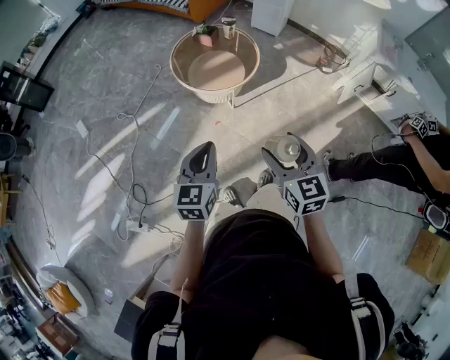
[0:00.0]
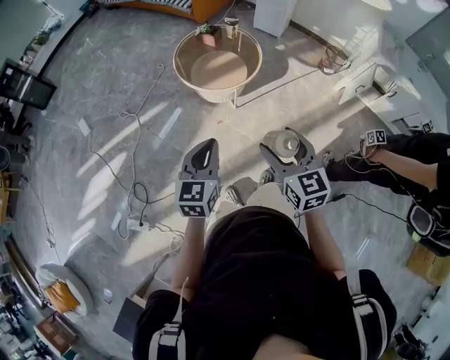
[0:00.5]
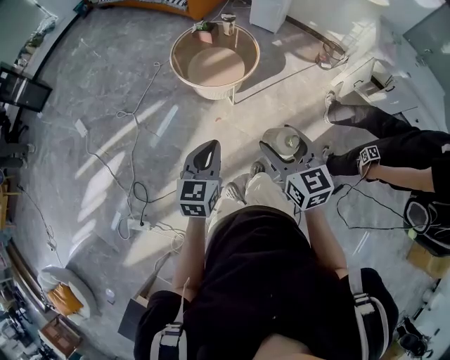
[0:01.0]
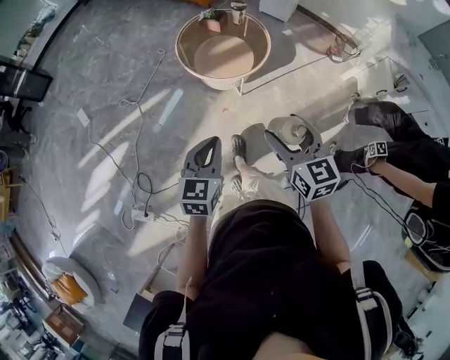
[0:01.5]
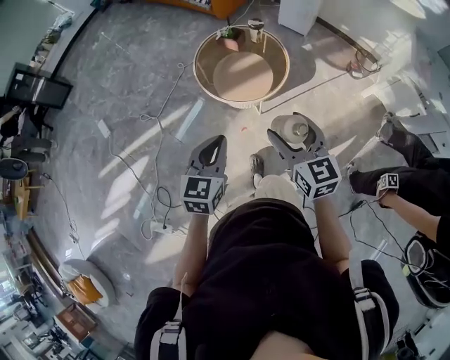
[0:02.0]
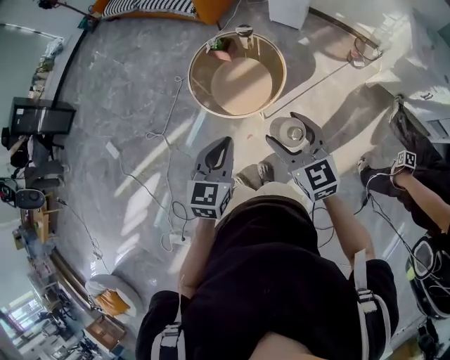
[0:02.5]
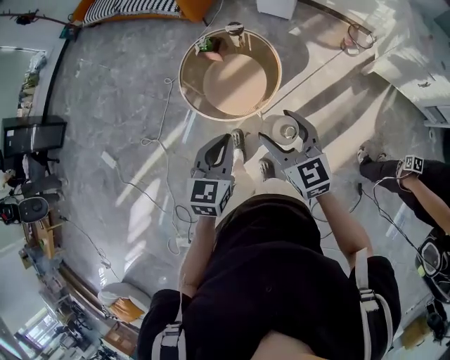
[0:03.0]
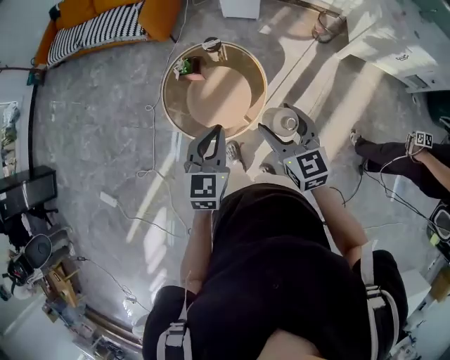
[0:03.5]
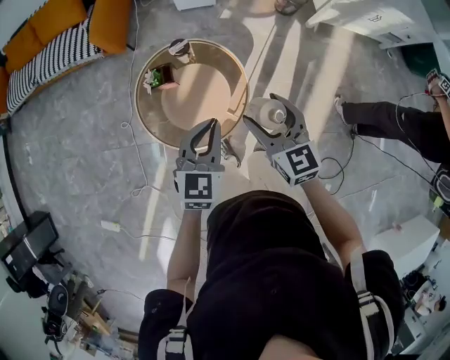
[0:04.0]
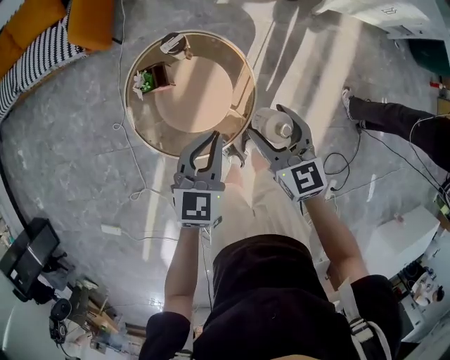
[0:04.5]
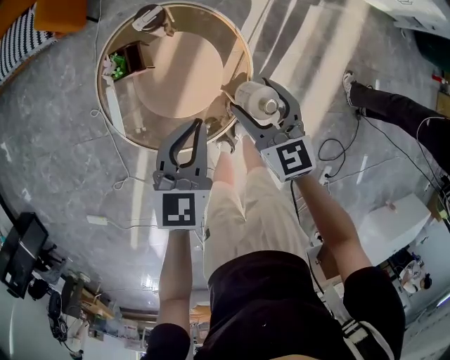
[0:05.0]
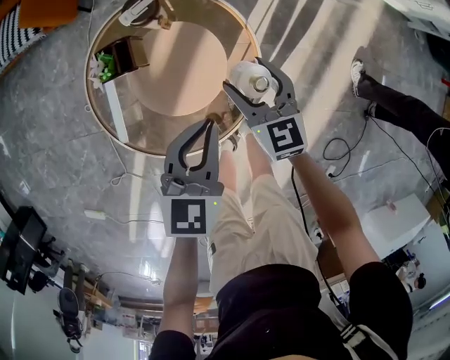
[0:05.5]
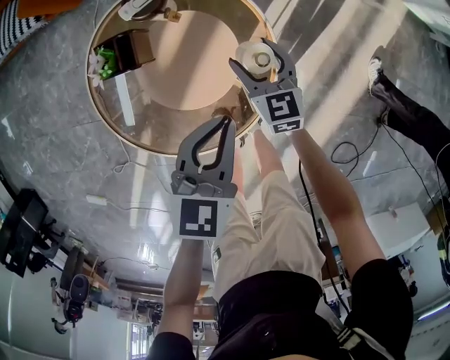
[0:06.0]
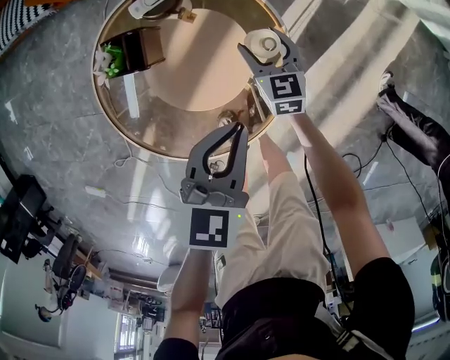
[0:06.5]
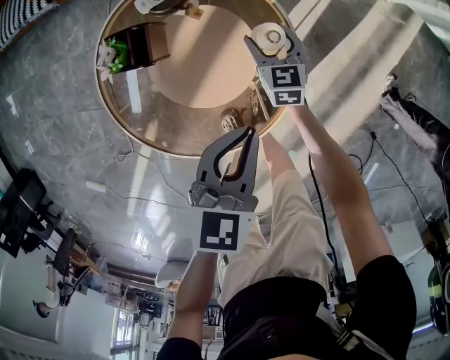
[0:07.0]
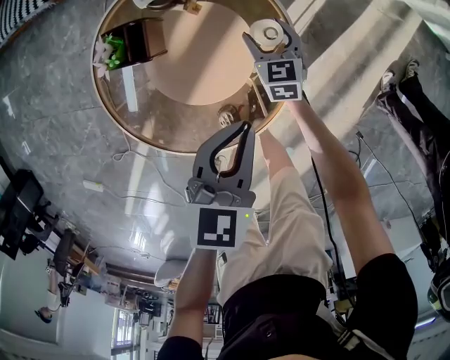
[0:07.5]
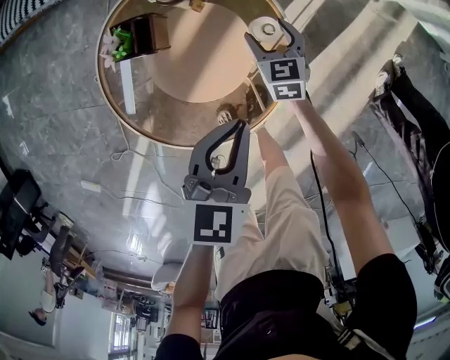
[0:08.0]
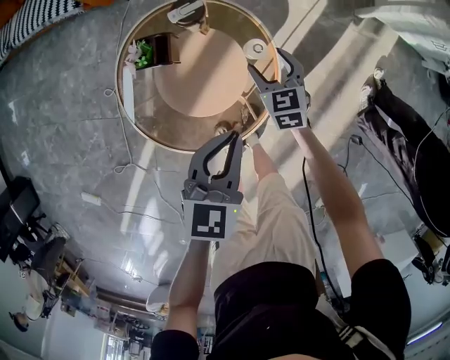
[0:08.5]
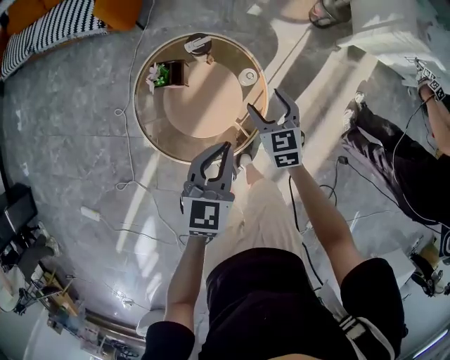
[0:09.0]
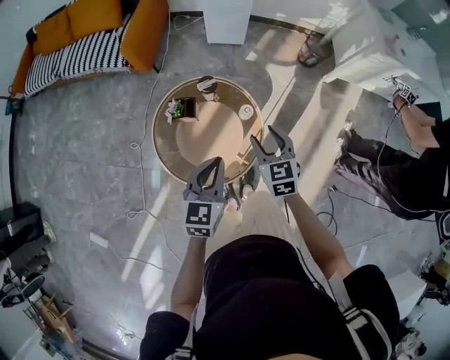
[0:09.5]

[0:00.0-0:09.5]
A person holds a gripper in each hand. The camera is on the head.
0:00.0 to 0:02.0: Both grippers move forward, roughly 15 cm.
0:02.0 to 0:04.0: The right gripper shifts by approximately 35 cm, and changes its angle by approximately 30 degrees. The left gripper shifts by roughly 40 cm, and swivels approximately 40 degrees.
0:04.0 to 0:05.5: The left gripper goes some 25 cm downward; the right gripper is displaced downward and forward by about 35 cm.
0:05.5 to 0:07.5: The right gripper heads downward and forward, covering about 25 cm. The left gripper heads downward, covering some 5 cm.
0:07.5 to 0:09.5: The left gripper travels upward by approximately 25 cm, while the right gripper travels upward by some 40 cm.

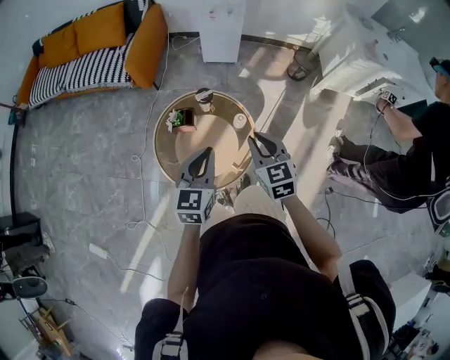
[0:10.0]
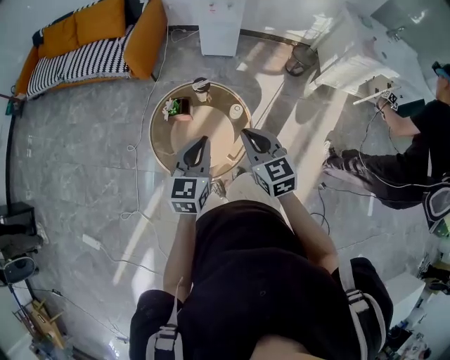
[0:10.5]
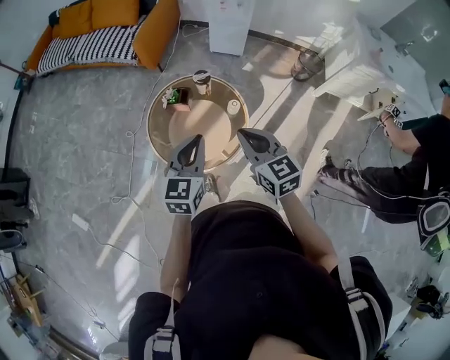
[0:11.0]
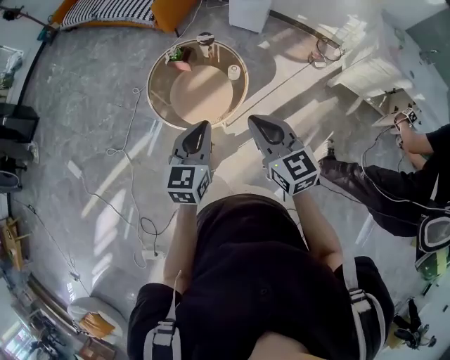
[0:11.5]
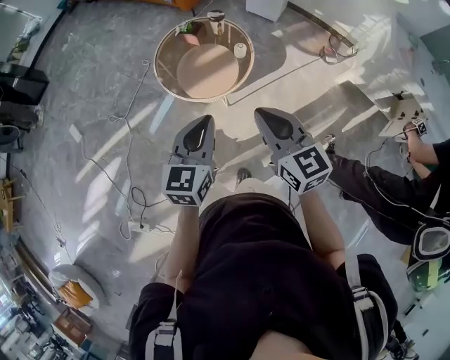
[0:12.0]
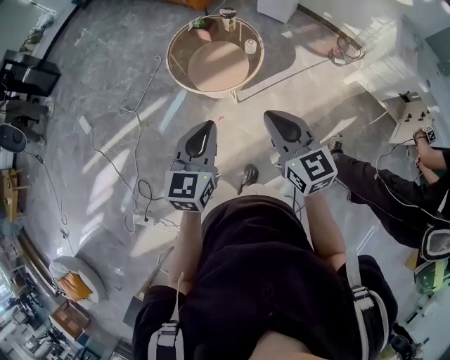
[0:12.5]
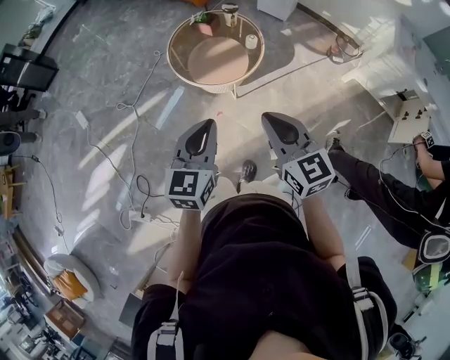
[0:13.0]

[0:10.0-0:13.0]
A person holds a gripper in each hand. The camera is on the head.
0:10.0 to 0:11.5: Both grippers travel together backward and to the right, approximately 25 cm. The right gripper rotates approximately 30 degrees.
0:11.5 to 0:13.0: The two grippers go some 20 cm backward.

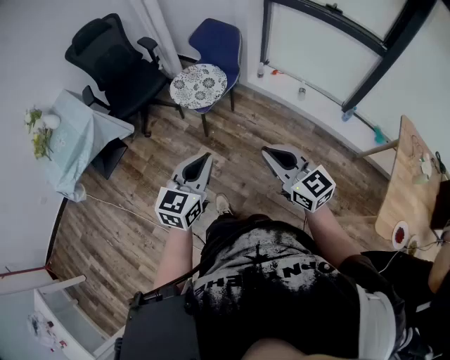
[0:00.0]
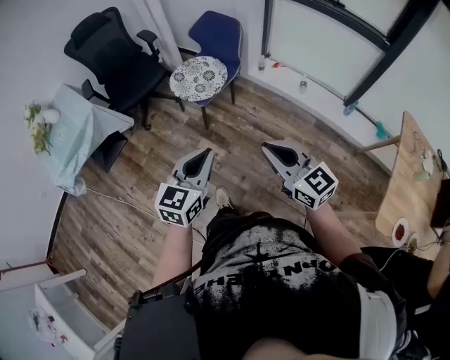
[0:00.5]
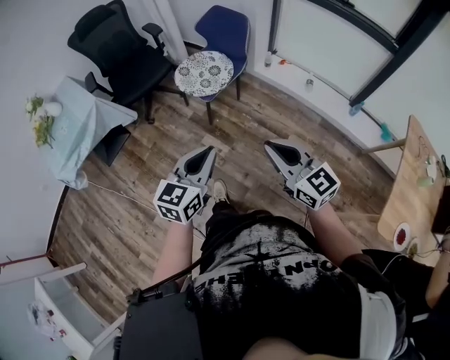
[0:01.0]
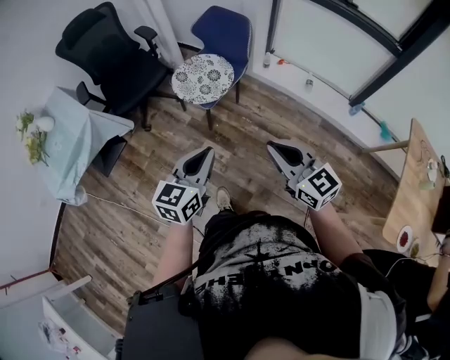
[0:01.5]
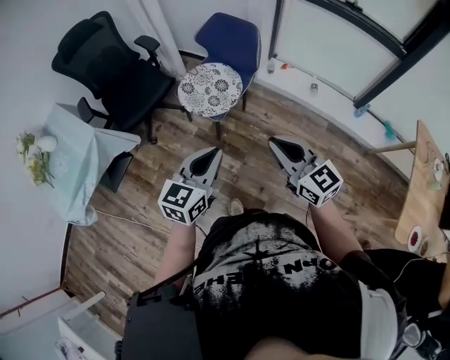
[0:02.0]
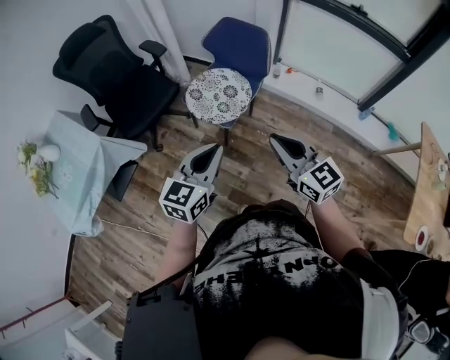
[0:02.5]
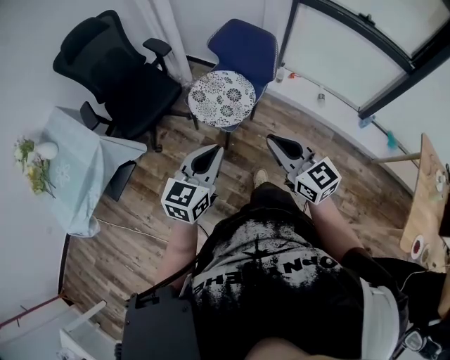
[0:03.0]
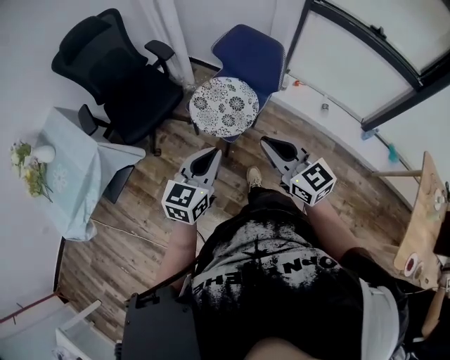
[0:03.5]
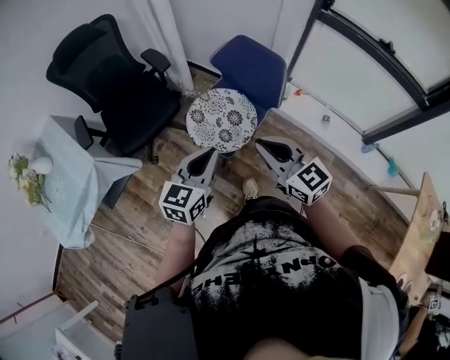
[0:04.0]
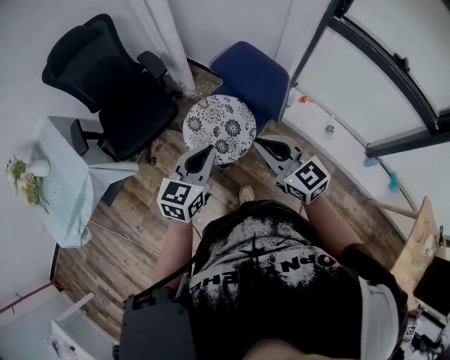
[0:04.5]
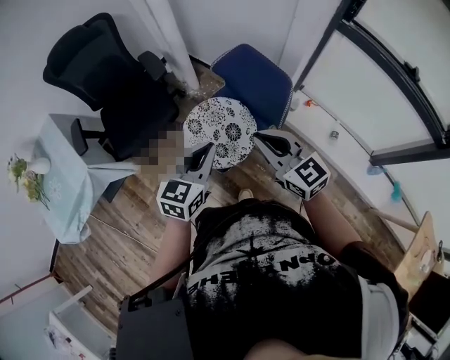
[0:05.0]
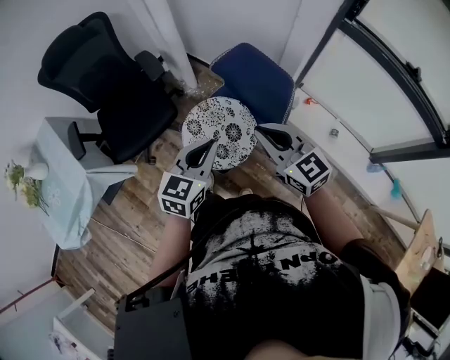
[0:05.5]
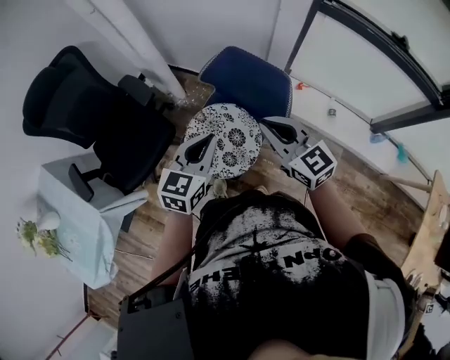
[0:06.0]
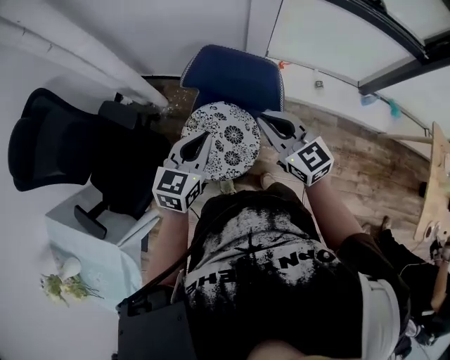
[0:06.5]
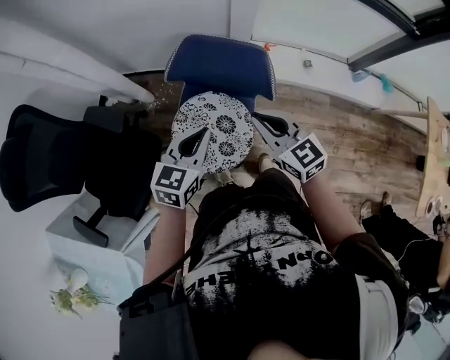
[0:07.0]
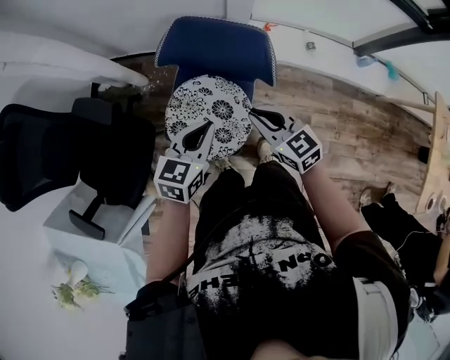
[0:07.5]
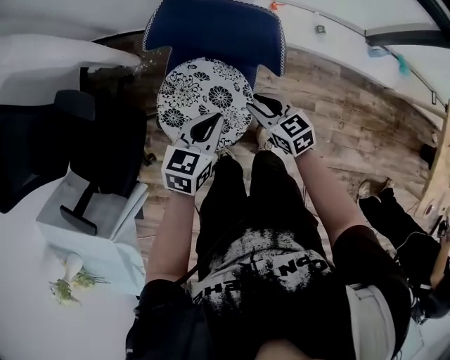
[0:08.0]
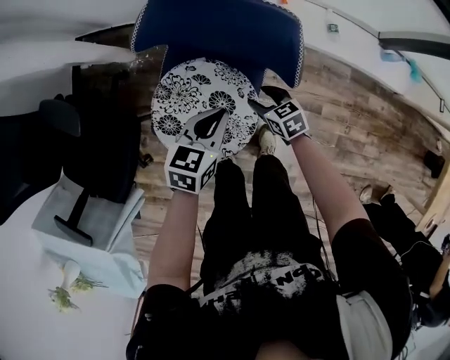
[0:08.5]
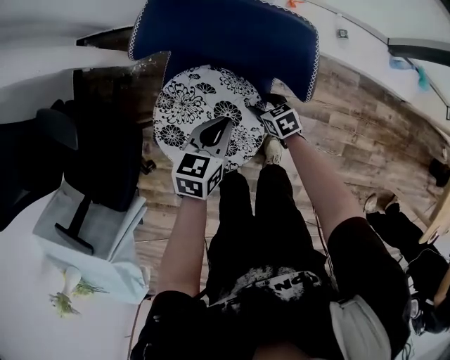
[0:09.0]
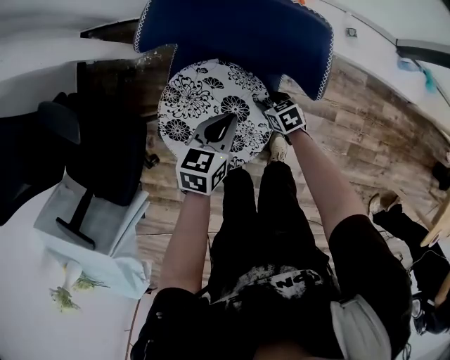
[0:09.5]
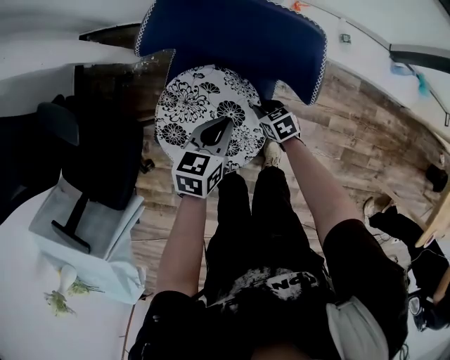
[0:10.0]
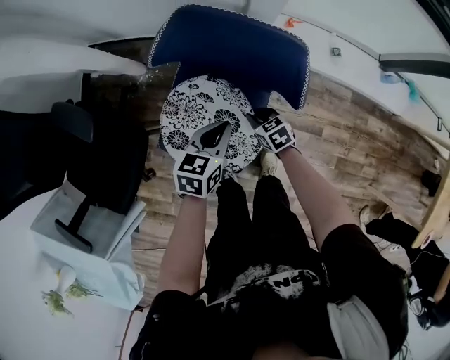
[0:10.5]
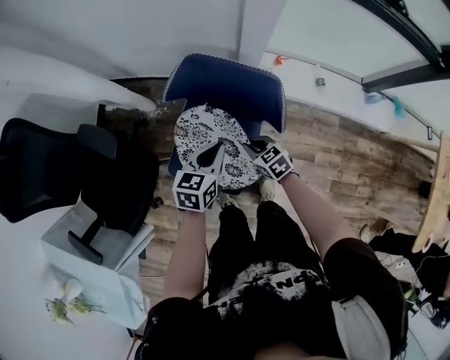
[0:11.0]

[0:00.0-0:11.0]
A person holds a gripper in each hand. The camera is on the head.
0:00.0 to 0:02.0: The grippers both shift forward and to the left by some 20 cm.
0:02.0 to 0:03.5: The two grippers go approximately 15 cm forward and to the left.
0:03.5 to 0:05.5: Both grippers travel together forward, some 25 cm.
0:05.5 to 0:07.5: The right gripper travels downward by about 15 cm, and turns by about 30 degrees. The left gripper changes place by about 15 cm, and turns by about 30 degrees.
0:07.5 to 0:09.0: The right gripper shifts some 40 cm downward, tilts its fingers roughly 30 degrees downward, and opens up; the left gripper travels downward by some 20 cm.
0:09.0 to 0:11.0: The two grippers go approximately 15 cm upward. The right gripper closes its fingers.

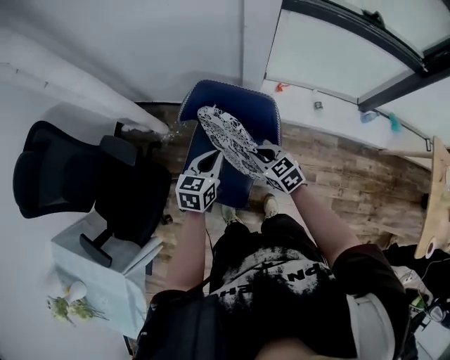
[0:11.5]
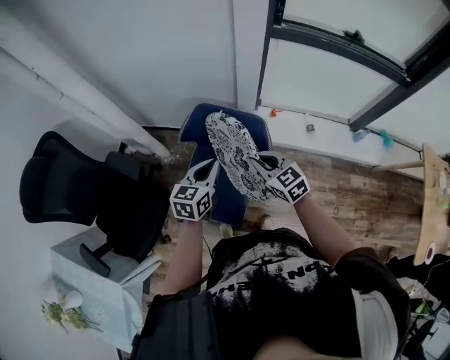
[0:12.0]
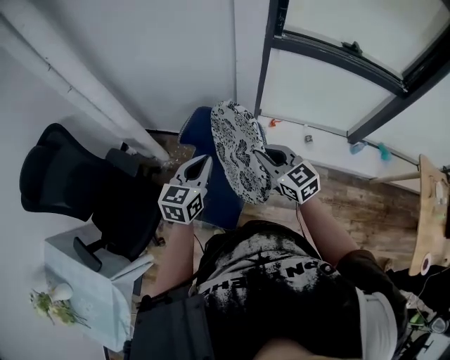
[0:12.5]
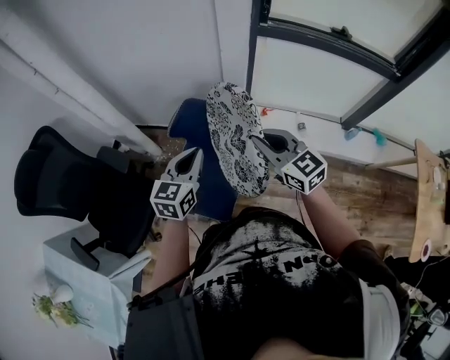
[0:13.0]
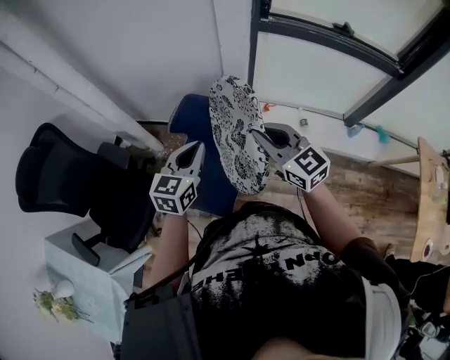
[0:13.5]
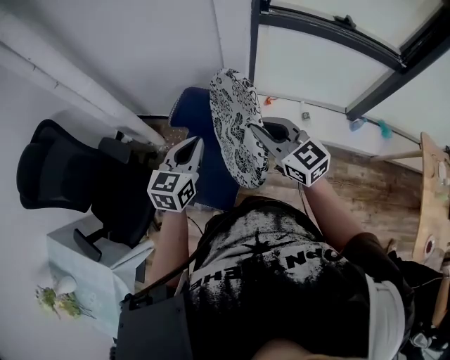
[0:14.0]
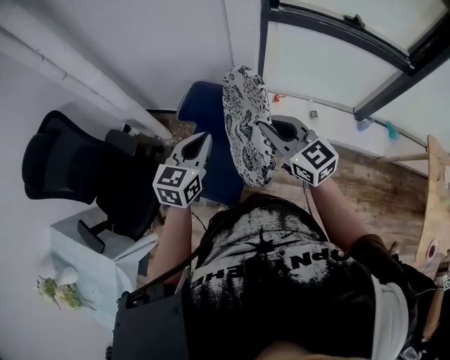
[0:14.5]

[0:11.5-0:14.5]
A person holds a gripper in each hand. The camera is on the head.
0:11.5 to 0:13.0: The left gripper moves upward, roughly 15 cm. Meanwhile the right gripper heads upward, covering some 25 cm, and rotates about 30 degrees.
0:13.0 to 0:14.5: There are only small adjustments of the grippers.
